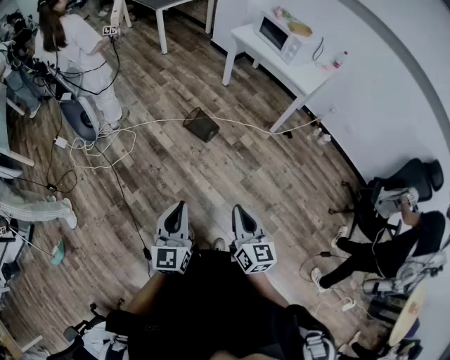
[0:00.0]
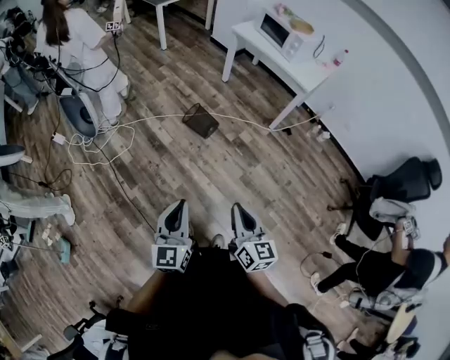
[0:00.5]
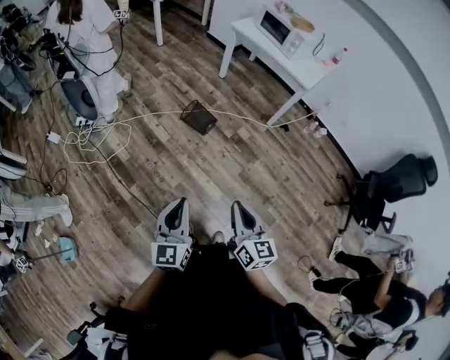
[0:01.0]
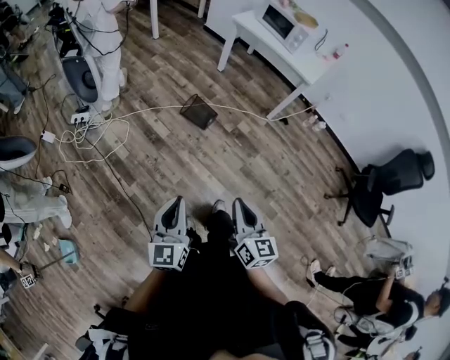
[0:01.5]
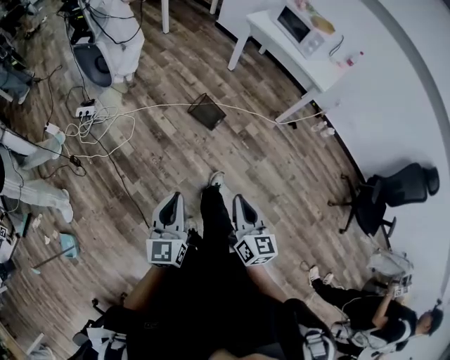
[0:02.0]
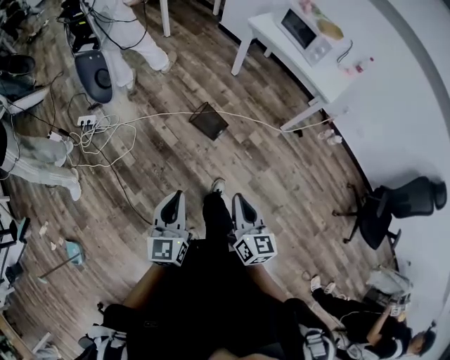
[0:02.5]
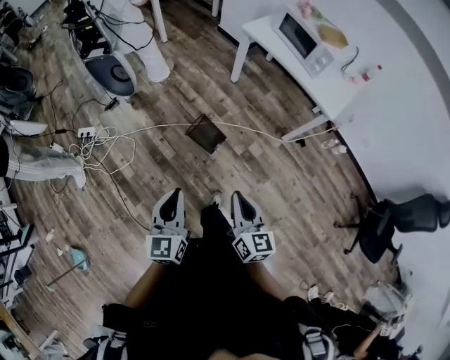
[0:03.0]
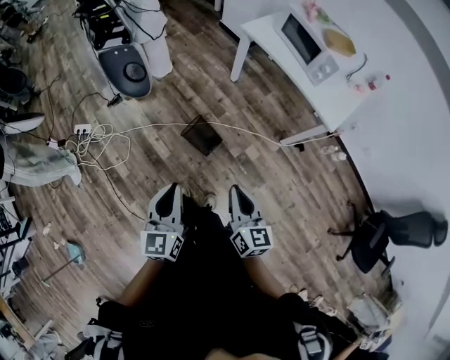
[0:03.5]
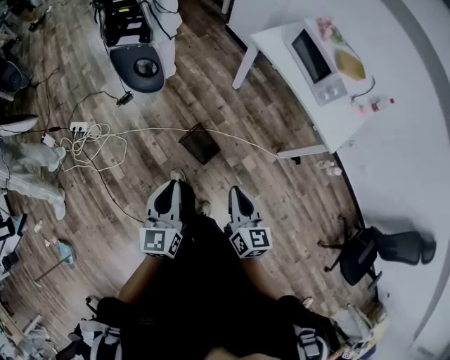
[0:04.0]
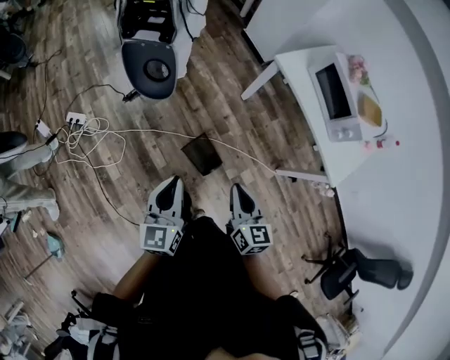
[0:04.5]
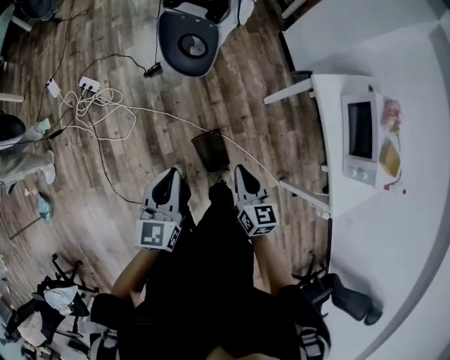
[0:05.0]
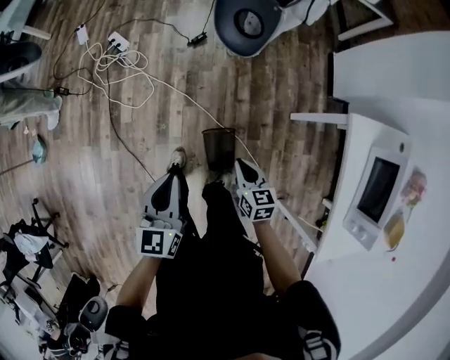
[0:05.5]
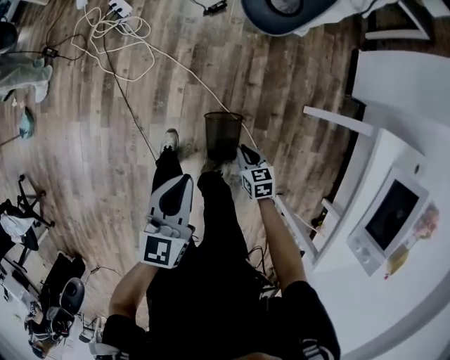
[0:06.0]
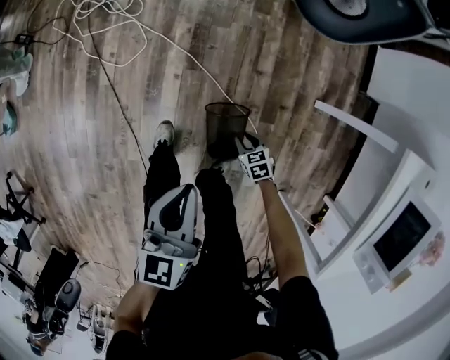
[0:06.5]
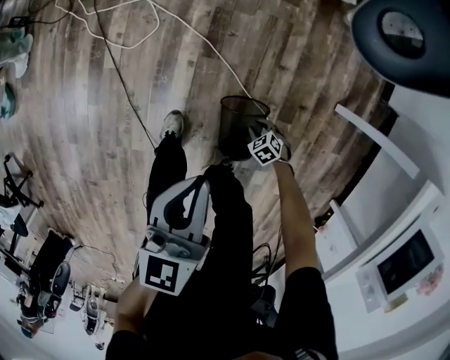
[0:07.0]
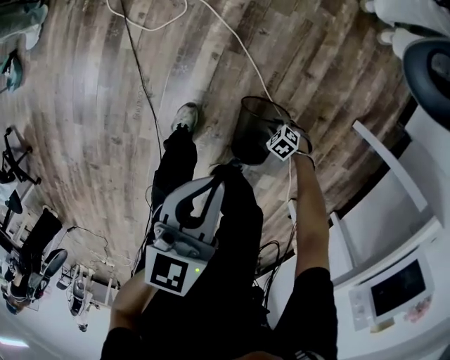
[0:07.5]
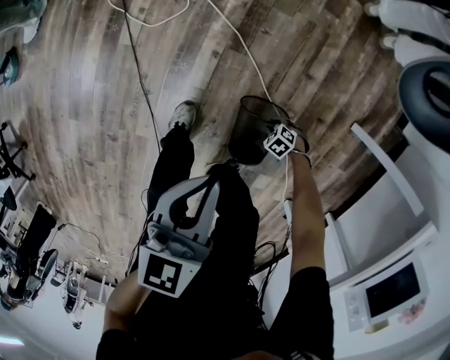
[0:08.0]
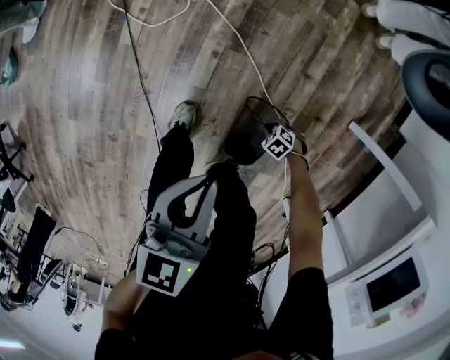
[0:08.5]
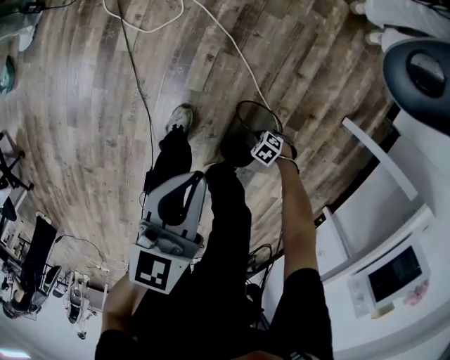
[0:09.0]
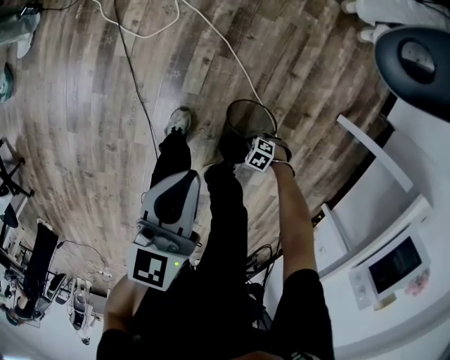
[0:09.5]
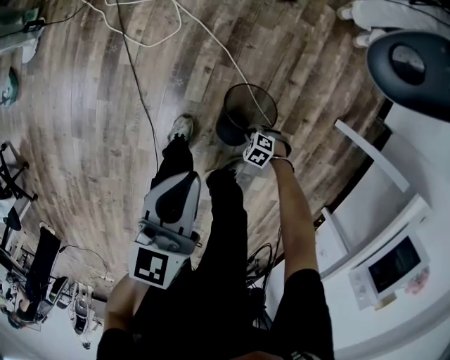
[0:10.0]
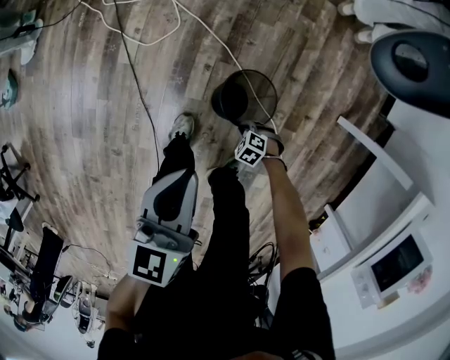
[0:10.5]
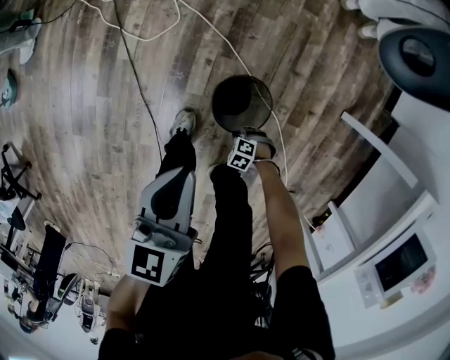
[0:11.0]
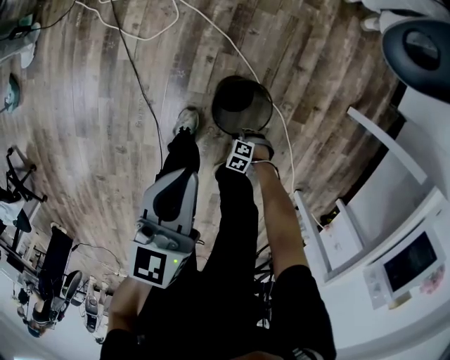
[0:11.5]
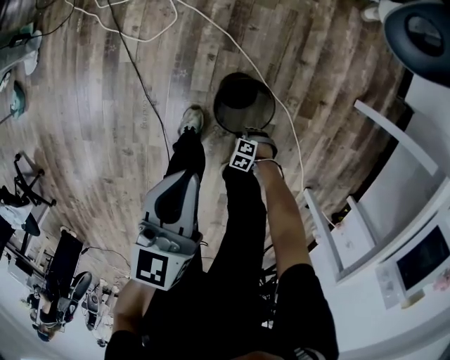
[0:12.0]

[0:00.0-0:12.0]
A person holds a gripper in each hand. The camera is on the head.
0:00.0 to 0:02.0: Both grippers move to the left and forward, some 15 cm.
0:02.0 to 0:04.0: Both grippers are carried forward, roughly 40 cm.
0:04.0 to 0:06.0: The right gripper travels downward by approximately 40 cm, and tilts its fingers some 30 degrees downward. Meanwhile the left gripper changes place by about 30 cm, and turns by approximately 40 degrees.
0:06.0 to 0:08.0: The left gripper shifts roughly 20 cm downward; the right gripper is displaced downward by approximately 40 cm, turns by approximately 70 degrees, and opens.
0:08.0 to 0:10.0: The right gripper shifts some 10 cm upward, while the left gripper ends up about 10 cm from where it was.
0:10.0 to 0:12.0: The right gripper ends up roughly 15 cm from where it was.

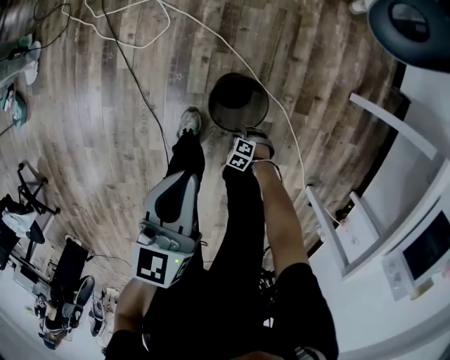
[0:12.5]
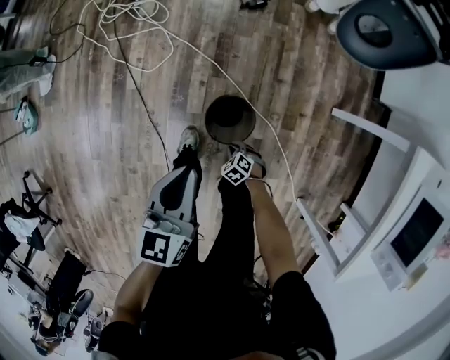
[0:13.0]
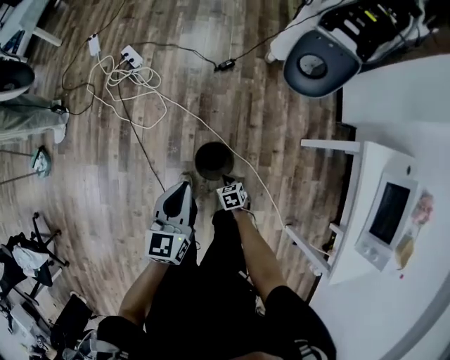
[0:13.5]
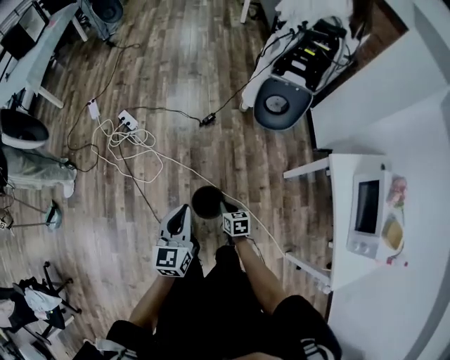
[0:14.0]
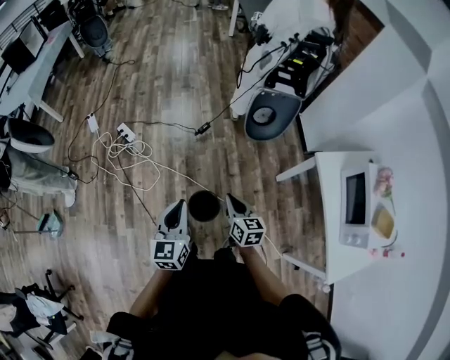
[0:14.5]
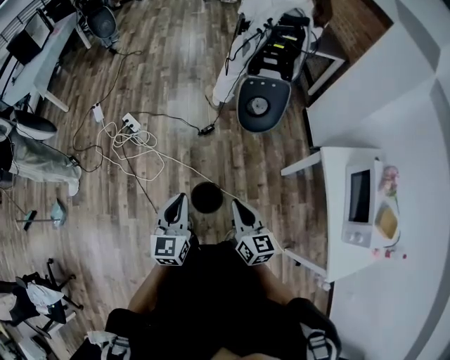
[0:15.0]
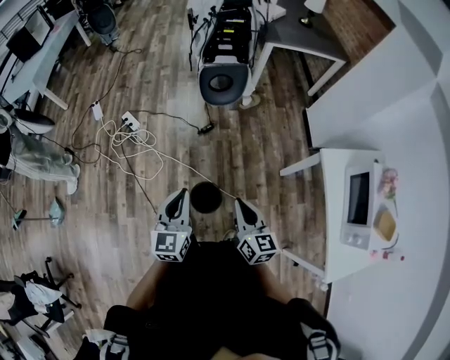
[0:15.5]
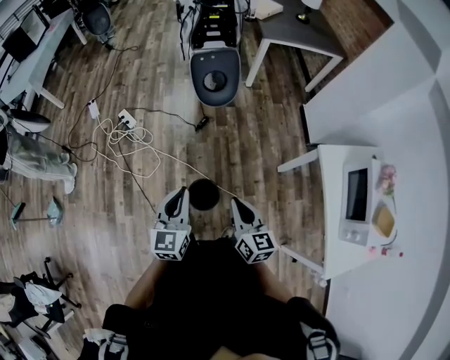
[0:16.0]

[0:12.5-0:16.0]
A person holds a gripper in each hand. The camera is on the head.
0:12.5 to 0:14.5: The left gripper is displaced upward by roughly 35 cm, and swivels about 20 degrees. Meanwhile the right gripper moves upward, some 70 cm, tilts its fingers roughly 50 degrees upward, and closes.
0:14.5 to 0:16.0: The right gripper shifts some 10 cm upward.

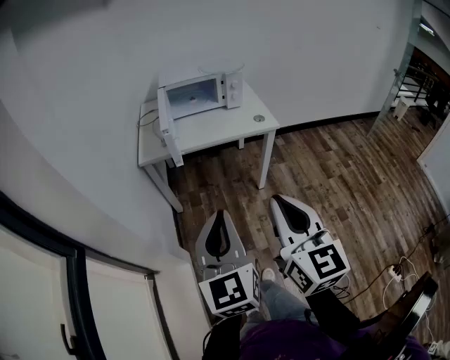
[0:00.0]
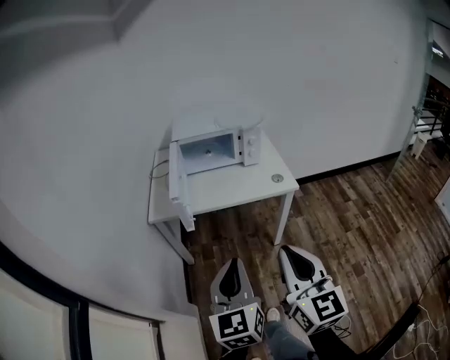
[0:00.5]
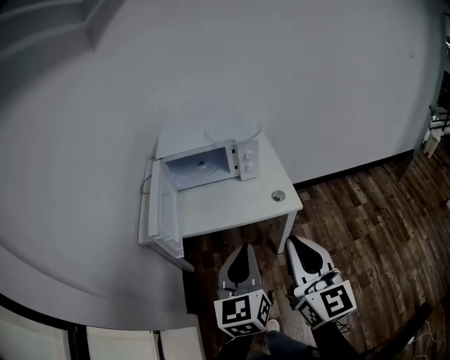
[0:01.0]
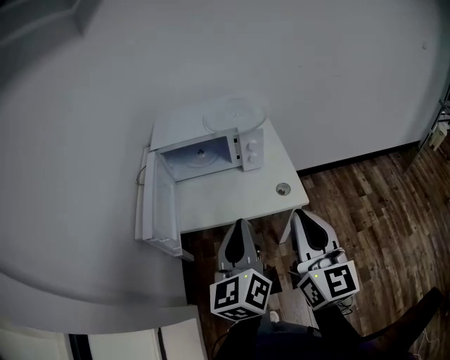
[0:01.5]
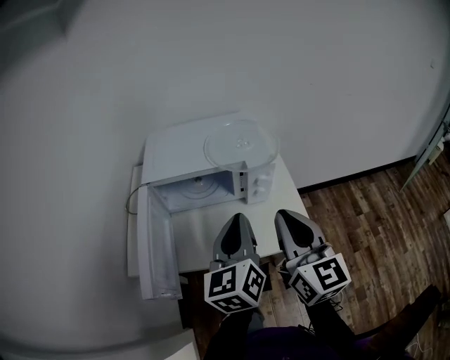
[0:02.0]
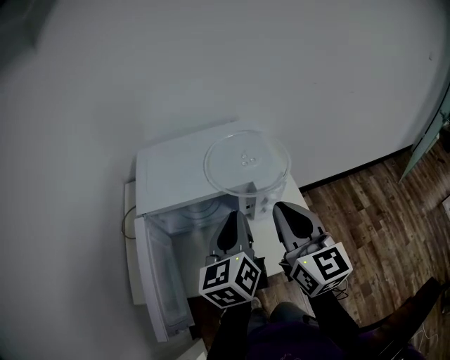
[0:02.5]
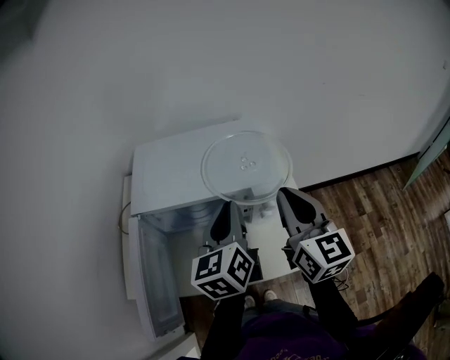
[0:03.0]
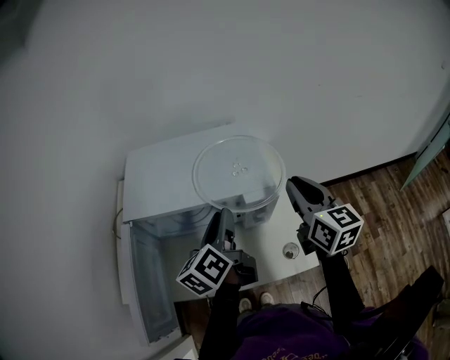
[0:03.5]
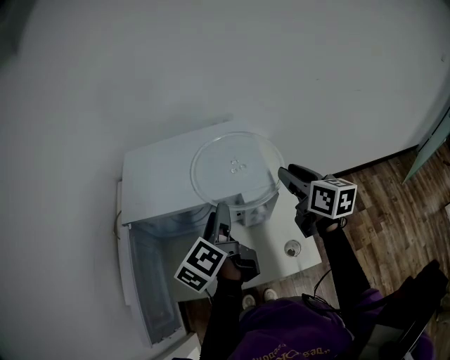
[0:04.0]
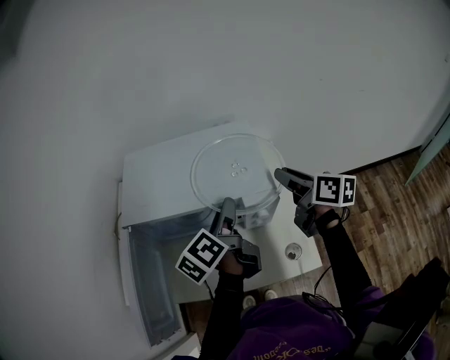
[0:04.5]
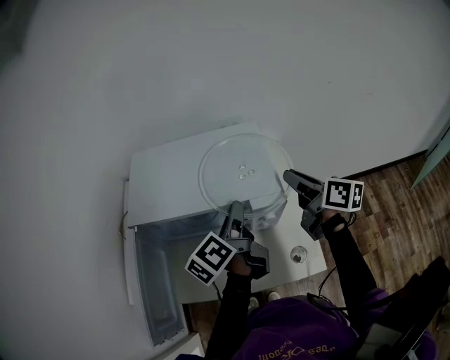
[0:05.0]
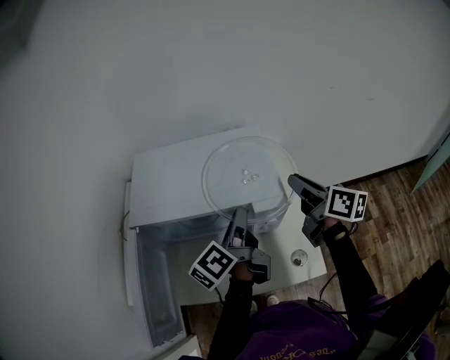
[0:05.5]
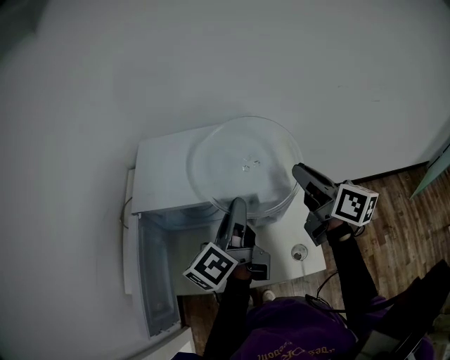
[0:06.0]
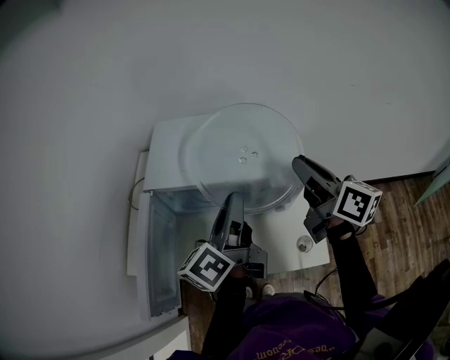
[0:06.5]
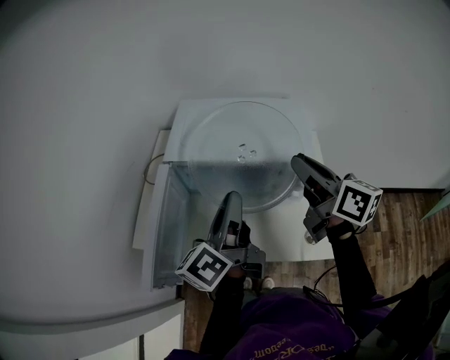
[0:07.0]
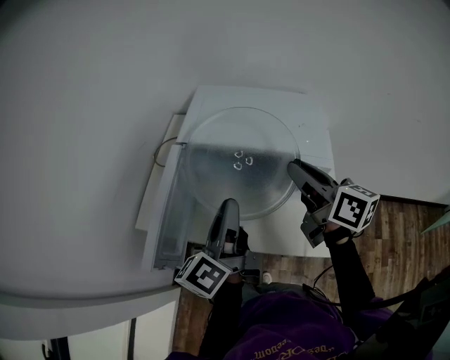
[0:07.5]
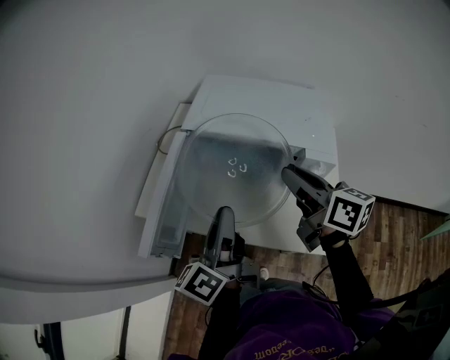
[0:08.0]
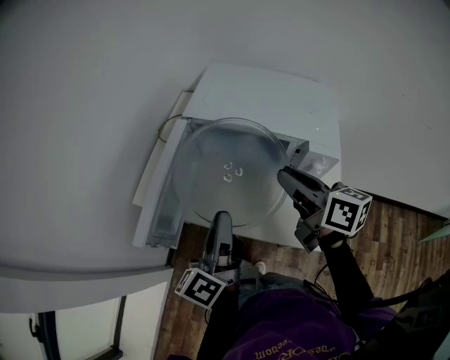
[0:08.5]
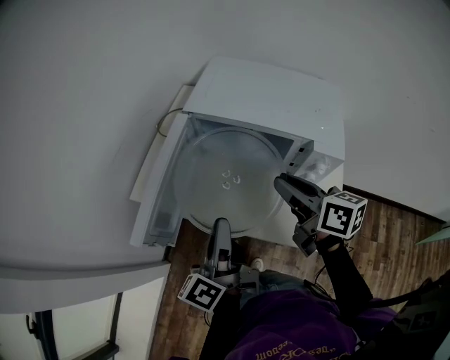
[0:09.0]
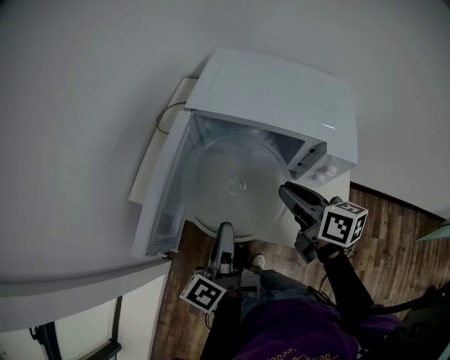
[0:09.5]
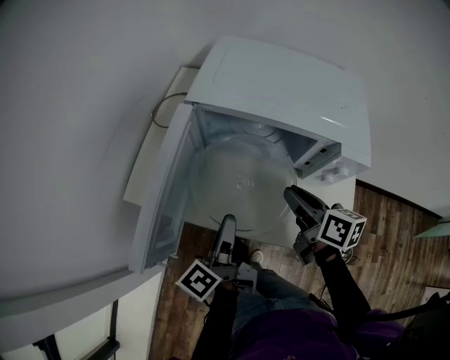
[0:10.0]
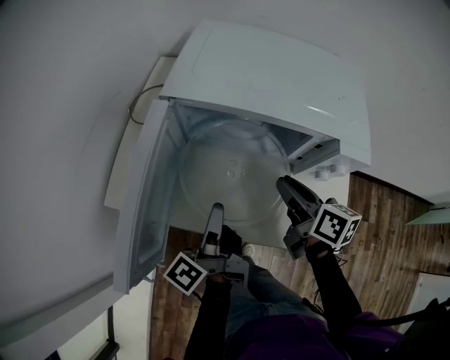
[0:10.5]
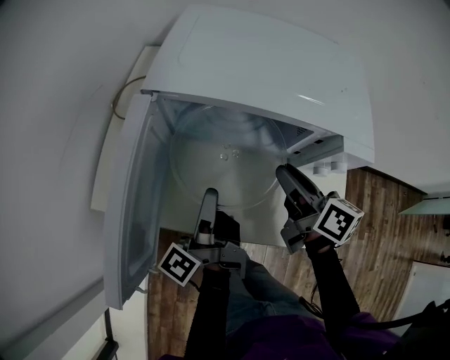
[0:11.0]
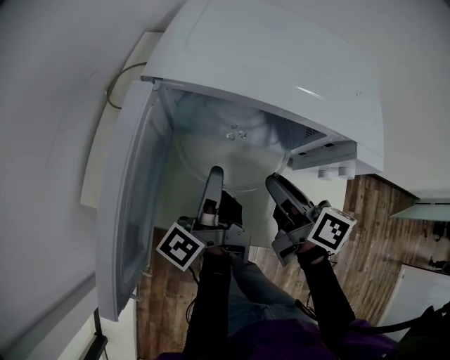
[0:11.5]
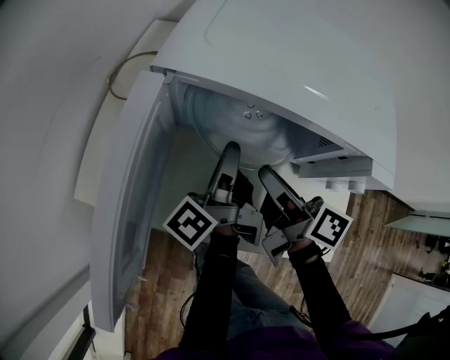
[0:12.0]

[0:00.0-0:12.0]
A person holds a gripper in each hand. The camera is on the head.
0:00.0 to 0:02.0: The pair of grippers is taken forward, some 60 cm. The left gripper rotates roughly 20 degrees.
0:02.0 to 0:04.0: The left gripper shifts some 20 cm forward and downward, swivels roughly 40 degrees, and opens its fingers, while the right gripper goes about 30 cm forward and to the right, turns by approximately 30 degrees, and opens up.
0:04.0 to 0:06.0: The left gripper closes. Meanwhile the right gripper shifts by about 5 cm.
0:06.0 to 0:08.0: The right gripper is displaced to the left by roughly 20 cm, and turns by approximately 30 degrees; the left gripper shifts about 20 cm to the left and backward, and rotates about 20 degrees.
0:08.0 to 0:10.0: The grippers both shift downward by approximately 15 cm. The left gripper turns by roughly 20 degrees.
0:10.0 to 0:12.0: The right gripper travels forward by roughly 5 cm. The left gripper is displaced forward by some 15 cm.
